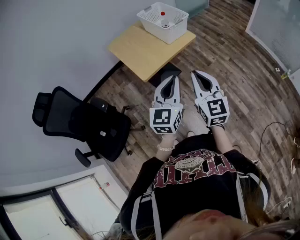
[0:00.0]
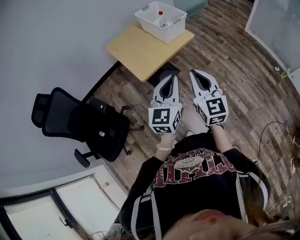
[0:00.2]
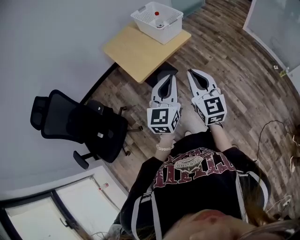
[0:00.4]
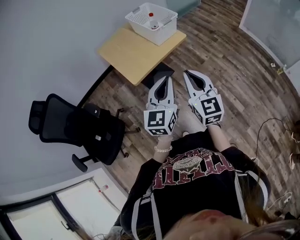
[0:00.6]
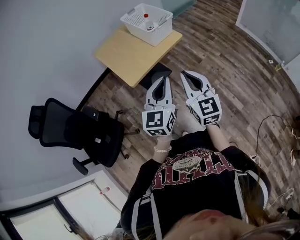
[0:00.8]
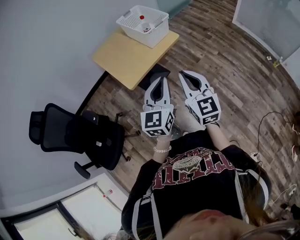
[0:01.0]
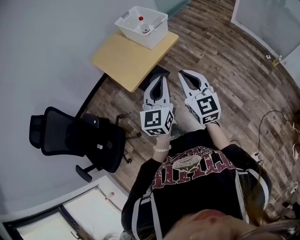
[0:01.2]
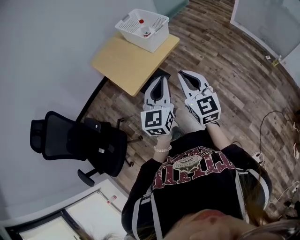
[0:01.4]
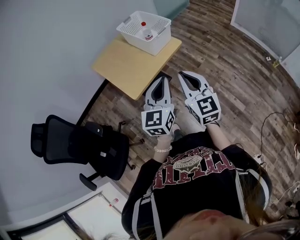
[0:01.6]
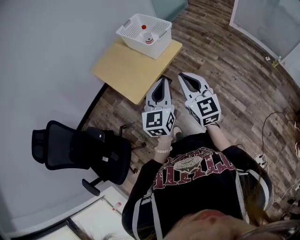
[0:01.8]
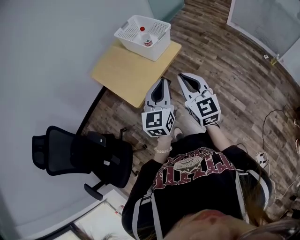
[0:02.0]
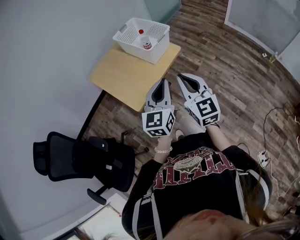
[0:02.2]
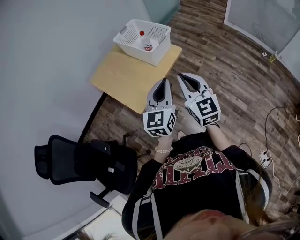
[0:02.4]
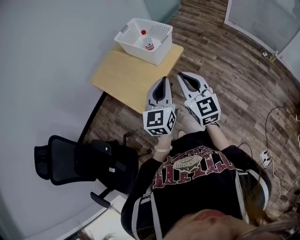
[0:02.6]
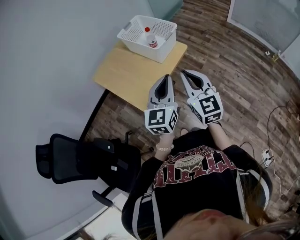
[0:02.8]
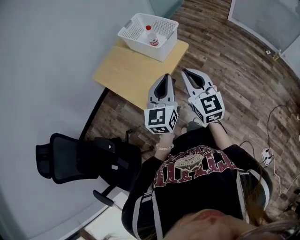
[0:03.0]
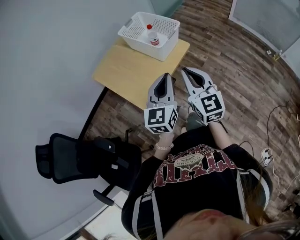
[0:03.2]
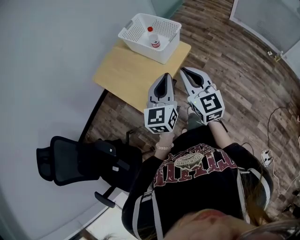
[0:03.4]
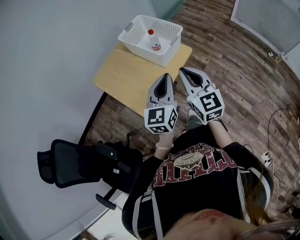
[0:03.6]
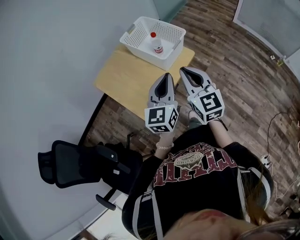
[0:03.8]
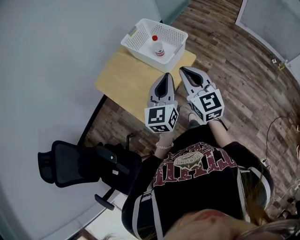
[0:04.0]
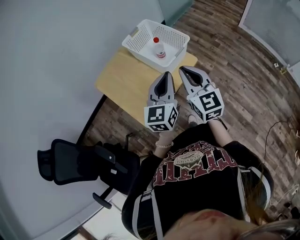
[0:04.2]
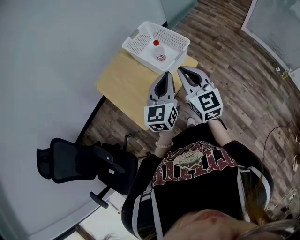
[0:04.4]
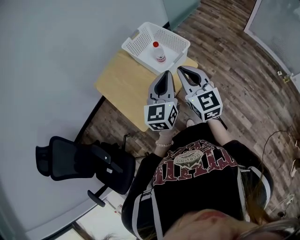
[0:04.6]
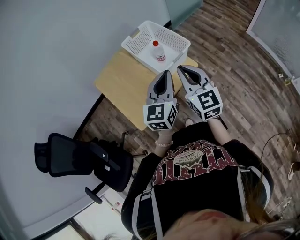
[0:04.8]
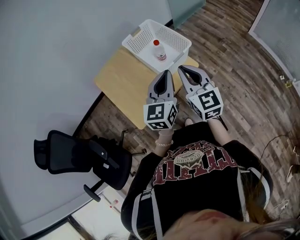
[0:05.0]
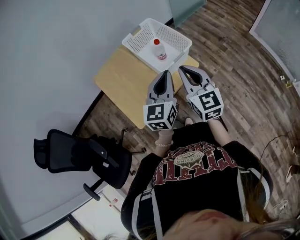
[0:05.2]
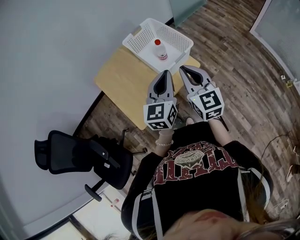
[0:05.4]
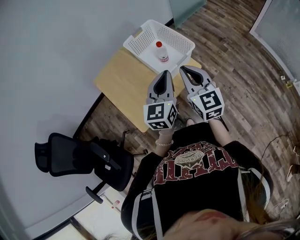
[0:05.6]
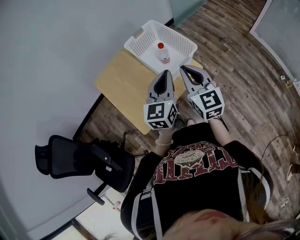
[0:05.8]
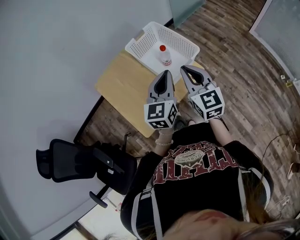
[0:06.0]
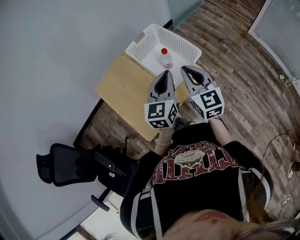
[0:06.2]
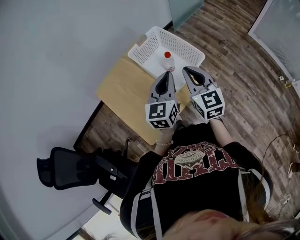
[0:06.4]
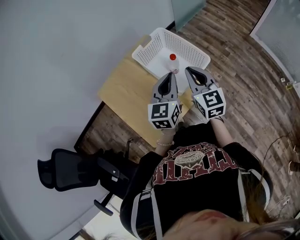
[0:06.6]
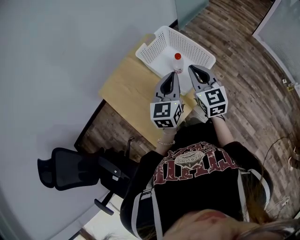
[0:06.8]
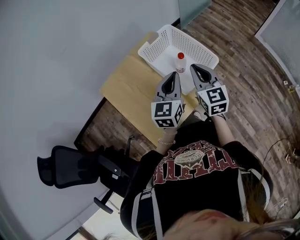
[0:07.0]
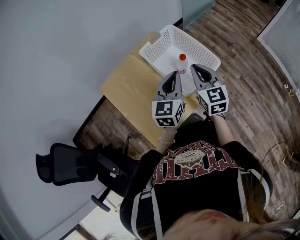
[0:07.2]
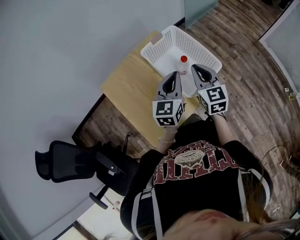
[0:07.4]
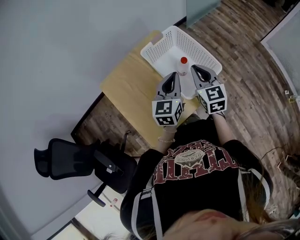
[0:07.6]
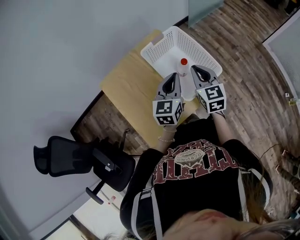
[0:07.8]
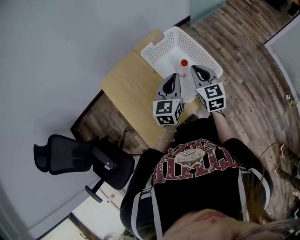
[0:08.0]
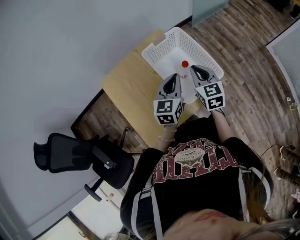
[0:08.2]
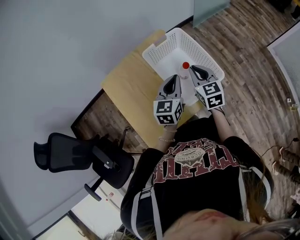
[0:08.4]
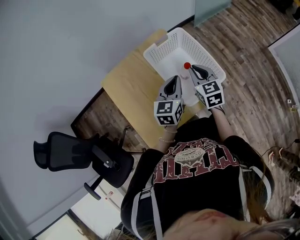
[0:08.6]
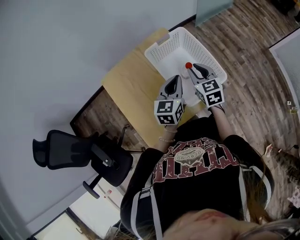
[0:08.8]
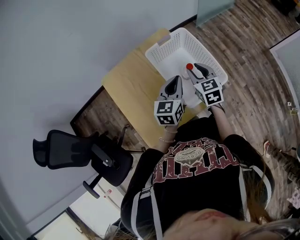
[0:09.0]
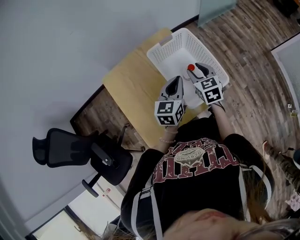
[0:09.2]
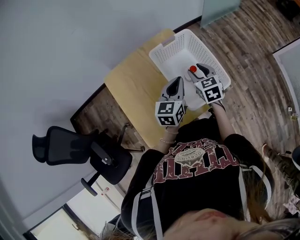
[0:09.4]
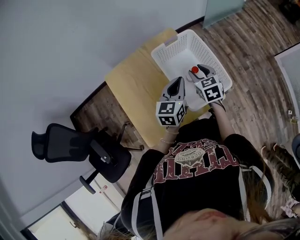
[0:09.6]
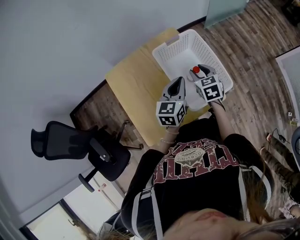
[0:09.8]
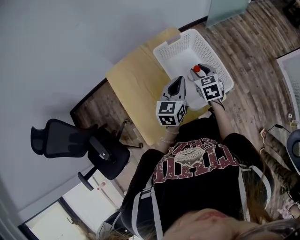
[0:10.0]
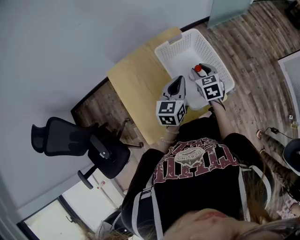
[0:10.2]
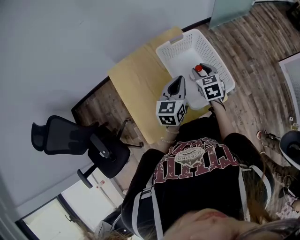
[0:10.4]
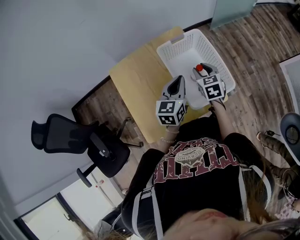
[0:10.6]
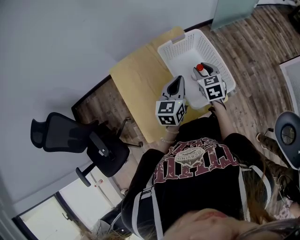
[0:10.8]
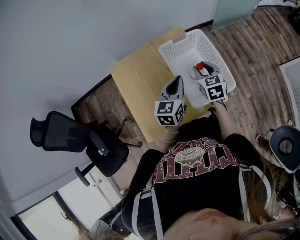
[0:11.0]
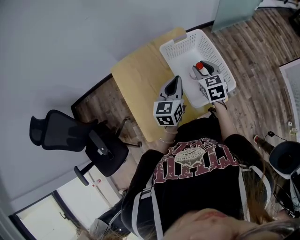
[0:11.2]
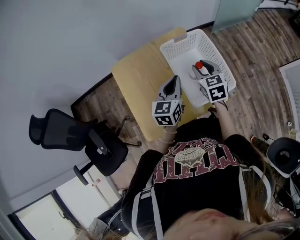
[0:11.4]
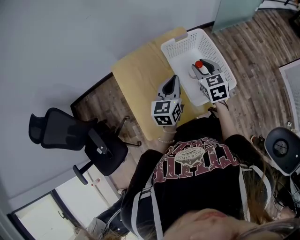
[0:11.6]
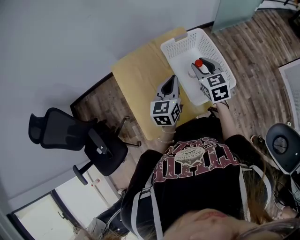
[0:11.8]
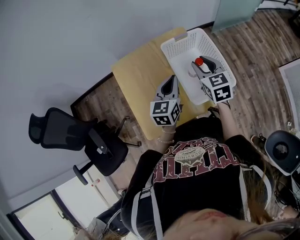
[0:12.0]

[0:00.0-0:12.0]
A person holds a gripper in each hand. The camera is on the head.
0.0 to 1.6 s: Both grippers move forward, roughly 10 cm.
1.6 to 3.0 s: Both grippers move forward and to the left, some 10 cm.
3.0 to 4.4 s: The grippers both shift forward by approximately 20 cm.
4.4 to 6.0 s: Both grippers move forward, roughly 10 cm.
6.0 to 7.6 s: The left gripper moves forward, downward and to the left, about 15 cm. The right gripper moves forward and downward, roughly 15 cm.
7.6 to 9.0 s: The right gripper heads downward and forward, covering some 10 cm, and opens its fingers. The left gripper moves some 5 cm.
9.0 to 10.4 s: There are only small adjustments of the grippers.
10.4 to 12.0 s: The right gripper moves upward, roughly 10 cm. Meanwhile the left gripper shifts about 5 cm to the left.

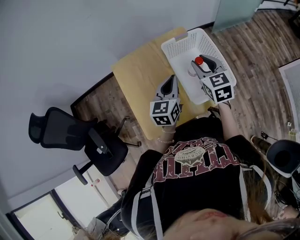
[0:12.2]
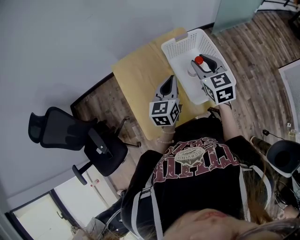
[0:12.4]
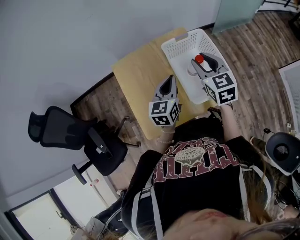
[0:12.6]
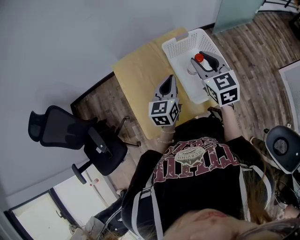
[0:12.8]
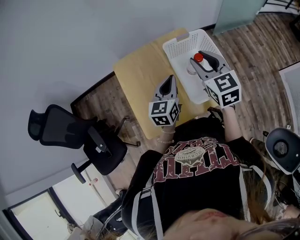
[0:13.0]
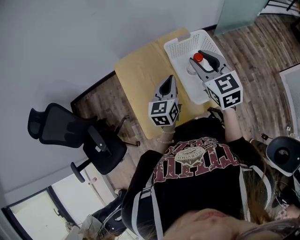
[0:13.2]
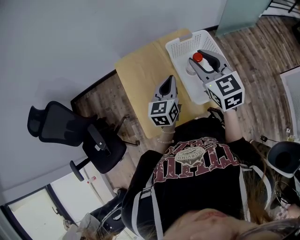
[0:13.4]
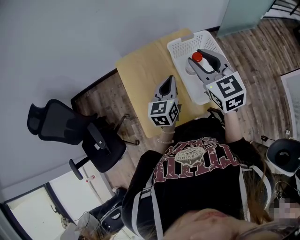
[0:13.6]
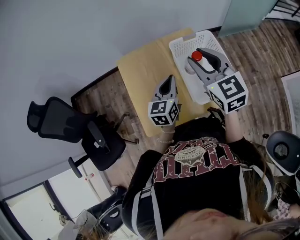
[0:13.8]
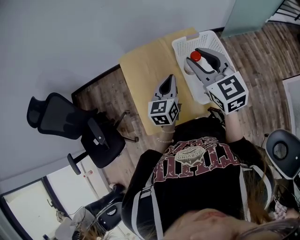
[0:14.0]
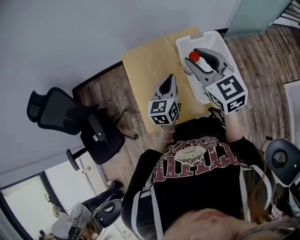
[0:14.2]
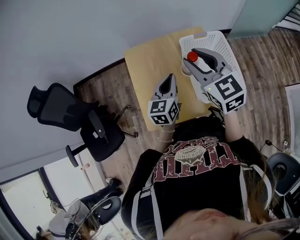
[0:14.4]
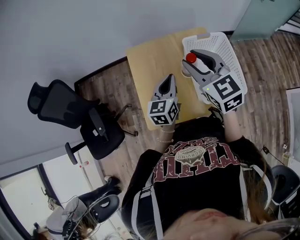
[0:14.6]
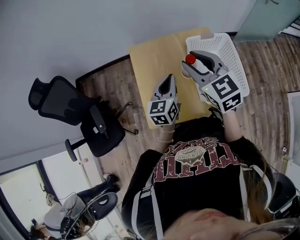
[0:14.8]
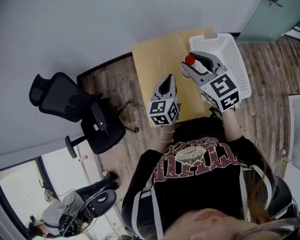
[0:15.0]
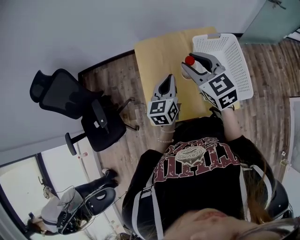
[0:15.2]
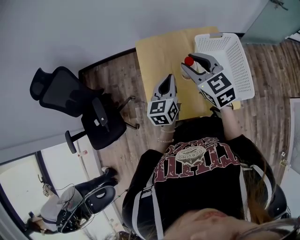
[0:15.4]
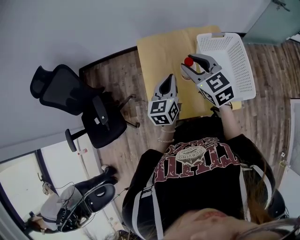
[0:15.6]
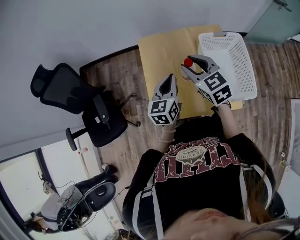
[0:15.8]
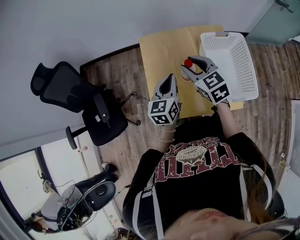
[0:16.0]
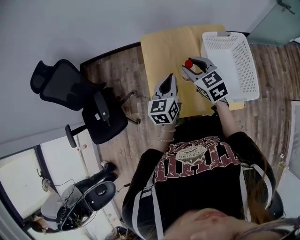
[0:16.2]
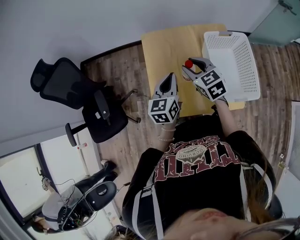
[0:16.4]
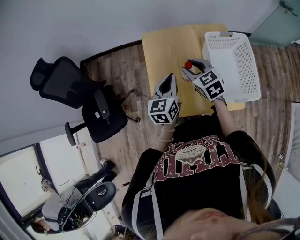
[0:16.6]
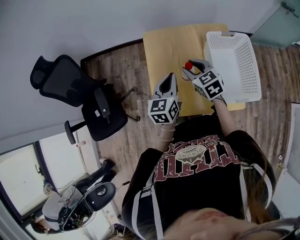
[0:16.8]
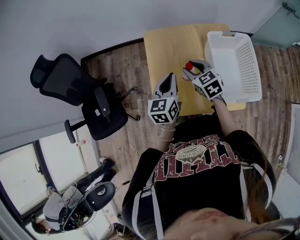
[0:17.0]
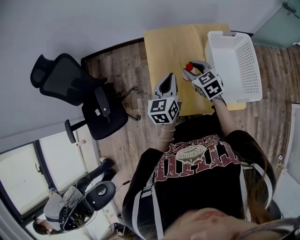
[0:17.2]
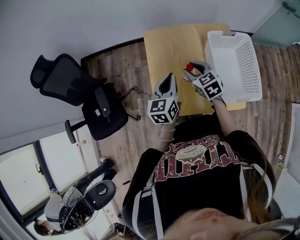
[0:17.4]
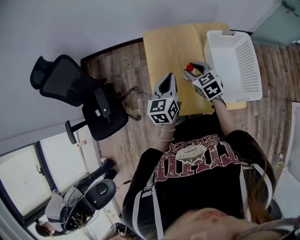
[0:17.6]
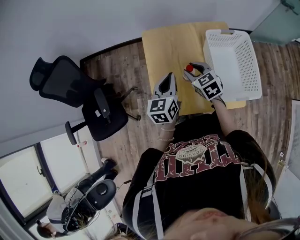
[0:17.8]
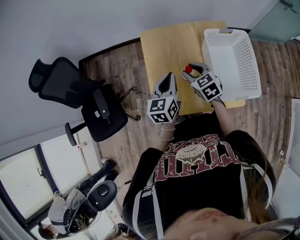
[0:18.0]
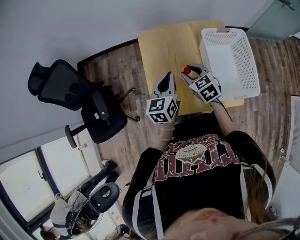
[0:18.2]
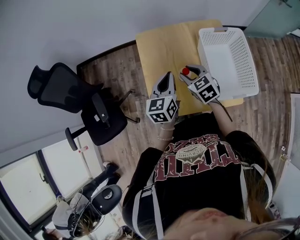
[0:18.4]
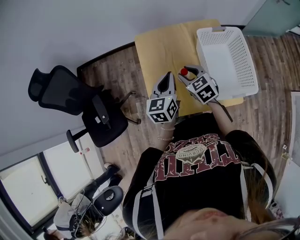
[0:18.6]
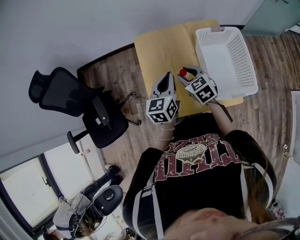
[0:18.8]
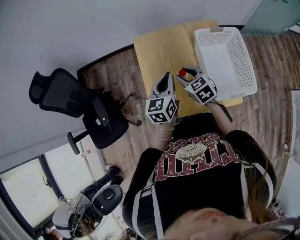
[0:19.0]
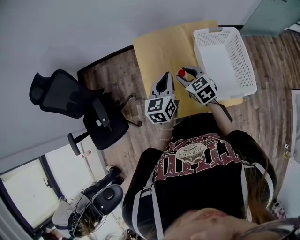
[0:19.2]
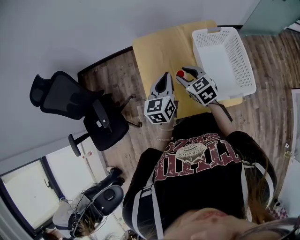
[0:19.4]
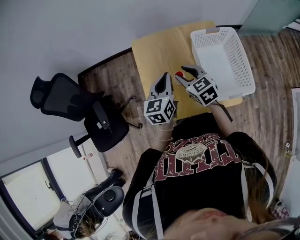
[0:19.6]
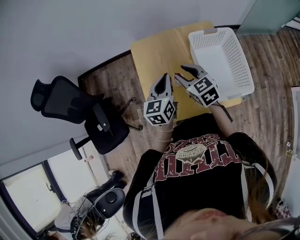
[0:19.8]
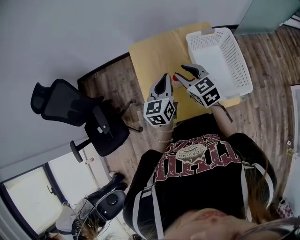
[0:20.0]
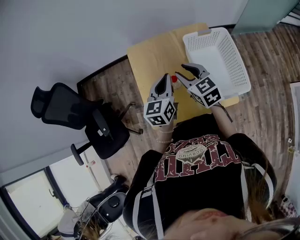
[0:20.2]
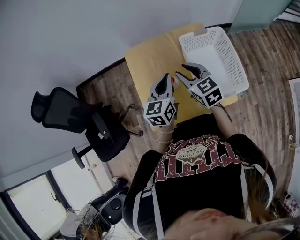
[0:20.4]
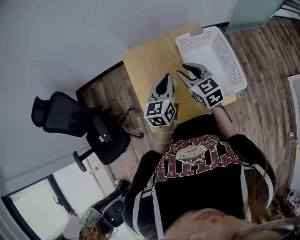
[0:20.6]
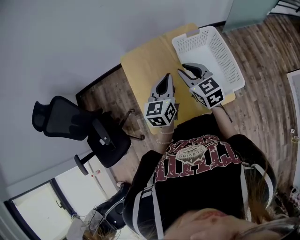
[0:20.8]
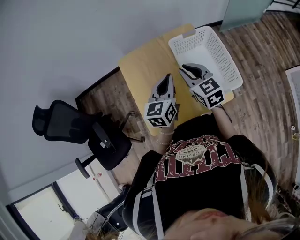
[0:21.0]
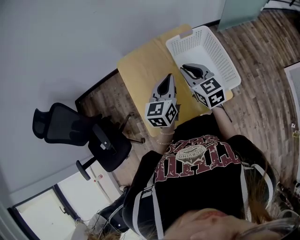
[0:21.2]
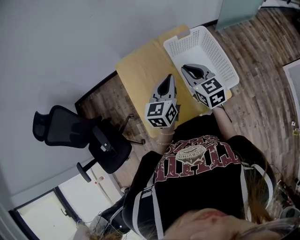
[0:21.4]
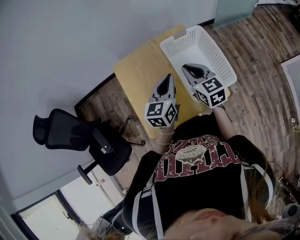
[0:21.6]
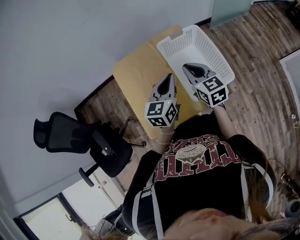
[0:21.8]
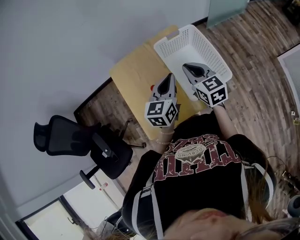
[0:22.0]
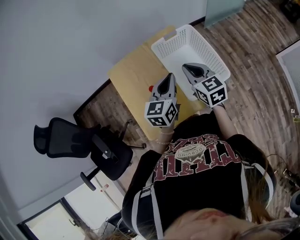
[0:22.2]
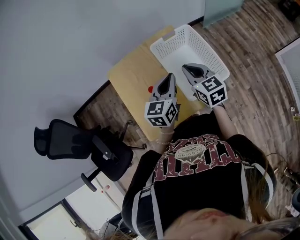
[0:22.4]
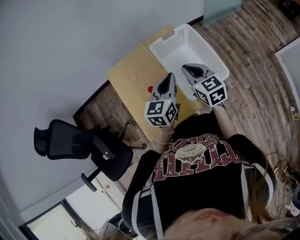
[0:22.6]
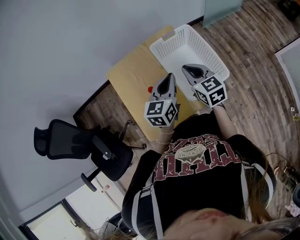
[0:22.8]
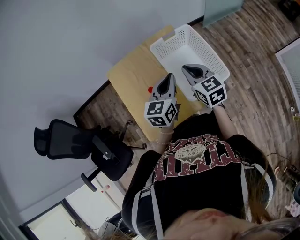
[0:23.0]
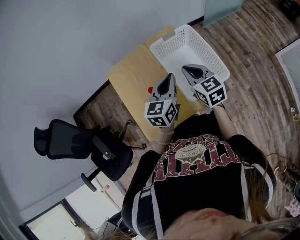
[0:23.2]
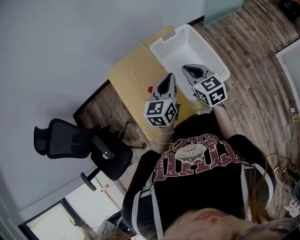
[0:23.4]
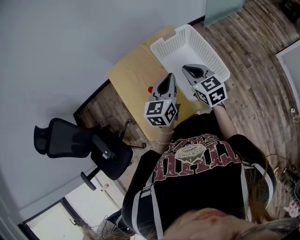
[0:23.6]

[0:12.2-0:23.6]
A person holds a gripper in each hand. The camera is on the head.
12.2 to 13.6 s: The right gripper heads upward, covering about 10 cm.
13.6 to 15.0 s: Both grippers move to the left, roughly 10 cm.
15.0 to 16.4 s: The left gripper travels to the left by approximately 5 cm; the right gripper shifts about 15 cm downward and to the left.
16.4 to 17.8 s: The right gripper shifts approximately 5 cm downward.
17.8 to 19.4 s: The grippers make only small movements.
19.4 to 20.8 s: The right gripper heads to the right and upward, covering about 10 cm. Meanwhile the left gripper travels to the right by some 10 cm.
20.8 to 22.2 s: The two grippers go roughly 10 cm to the right.
22.2 to 23.6 s: Both grippers stay put.

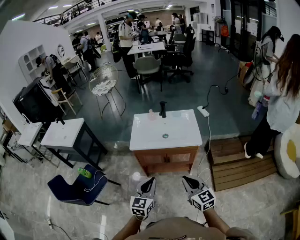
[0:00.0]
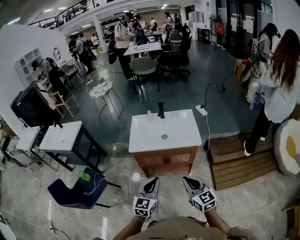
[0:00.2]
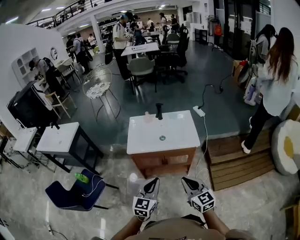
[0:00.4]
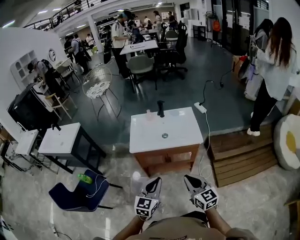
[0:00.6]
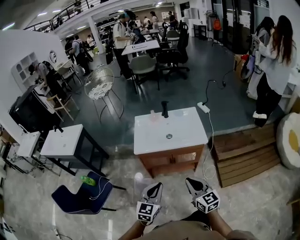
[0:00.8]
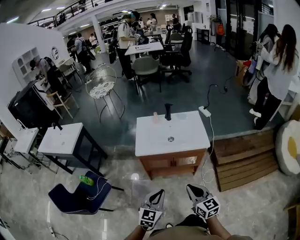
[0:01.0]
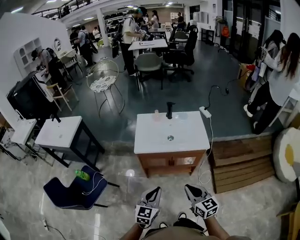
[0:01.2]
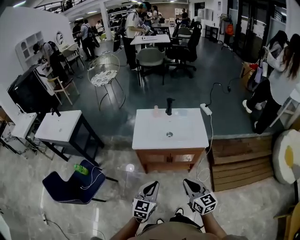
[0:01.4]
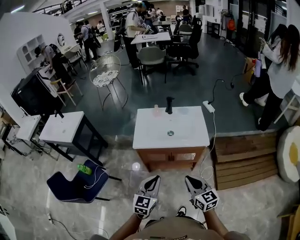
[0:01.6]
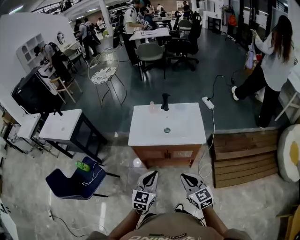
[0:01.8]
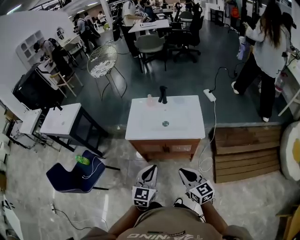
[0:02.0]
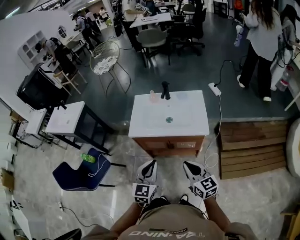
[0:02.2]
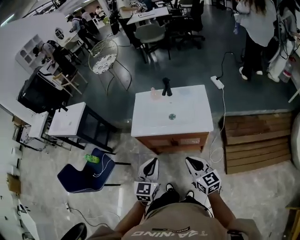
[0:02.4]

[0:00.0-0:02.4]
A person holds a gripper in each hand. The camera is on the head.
0.0 to 1.2 s: The left gripper moves downward, roughly 5 cm, while the right gripper goes roughly 5 cm to the left.
1.2 to 2.4 s: The two grippers go about 15 cm forward and to the right.
